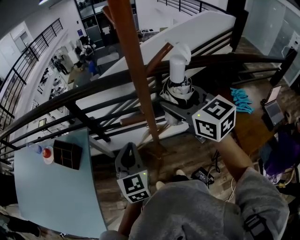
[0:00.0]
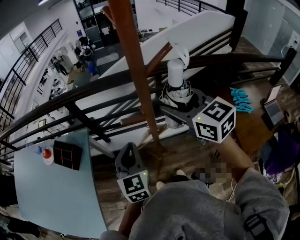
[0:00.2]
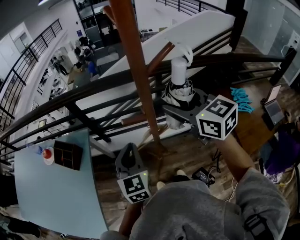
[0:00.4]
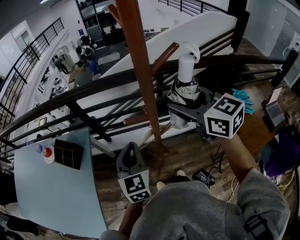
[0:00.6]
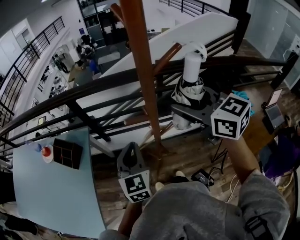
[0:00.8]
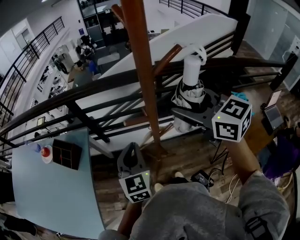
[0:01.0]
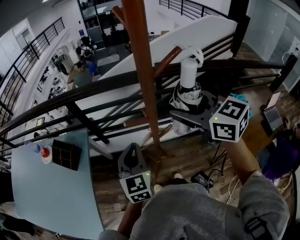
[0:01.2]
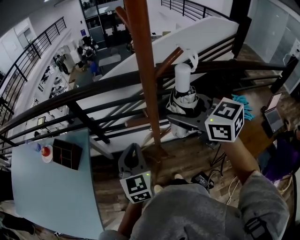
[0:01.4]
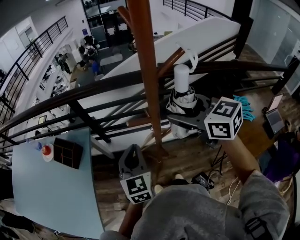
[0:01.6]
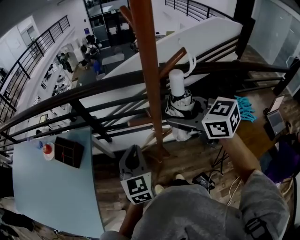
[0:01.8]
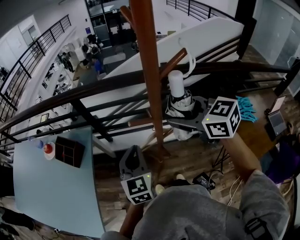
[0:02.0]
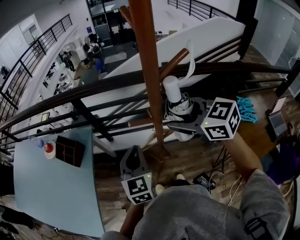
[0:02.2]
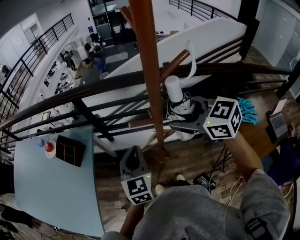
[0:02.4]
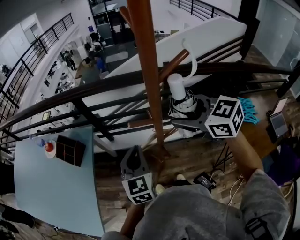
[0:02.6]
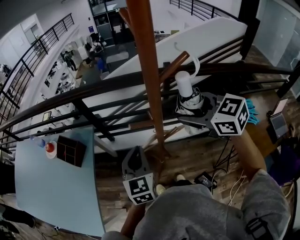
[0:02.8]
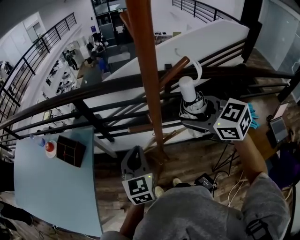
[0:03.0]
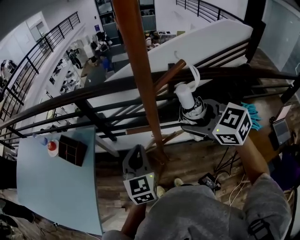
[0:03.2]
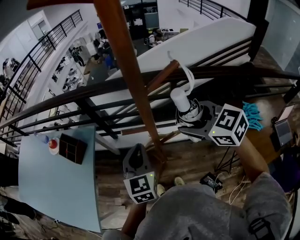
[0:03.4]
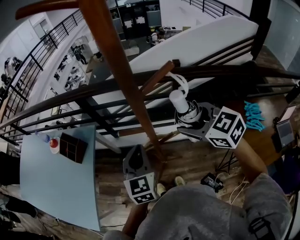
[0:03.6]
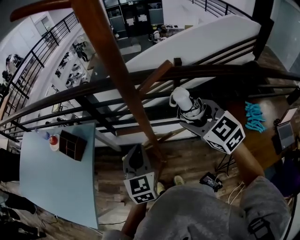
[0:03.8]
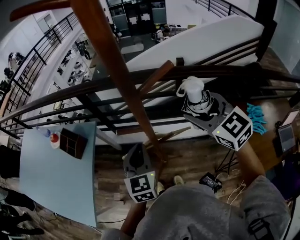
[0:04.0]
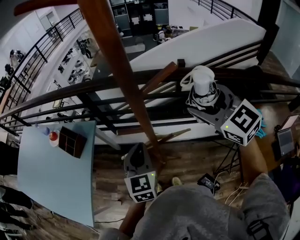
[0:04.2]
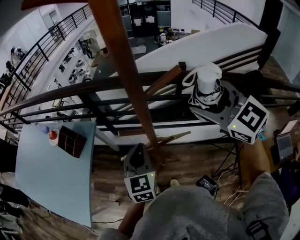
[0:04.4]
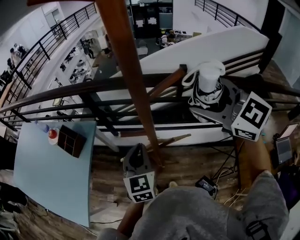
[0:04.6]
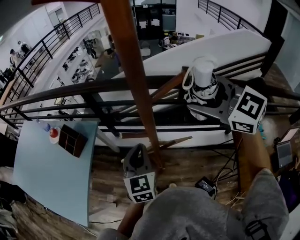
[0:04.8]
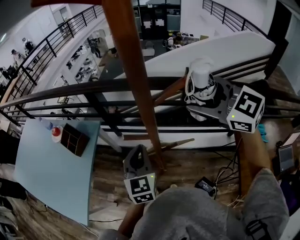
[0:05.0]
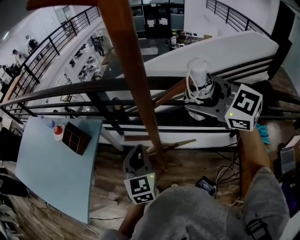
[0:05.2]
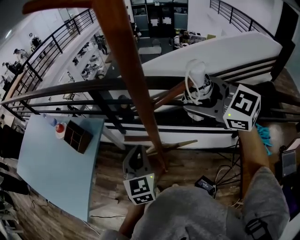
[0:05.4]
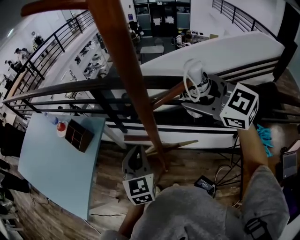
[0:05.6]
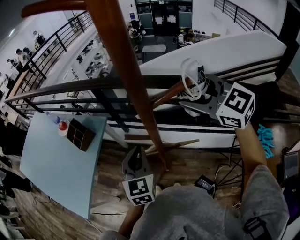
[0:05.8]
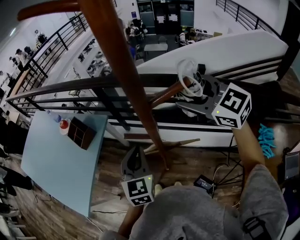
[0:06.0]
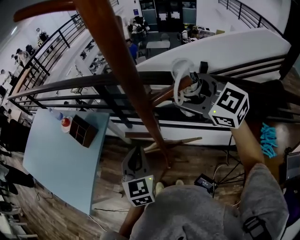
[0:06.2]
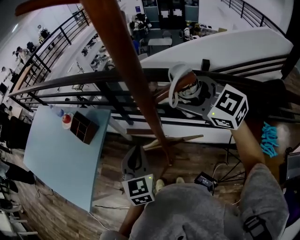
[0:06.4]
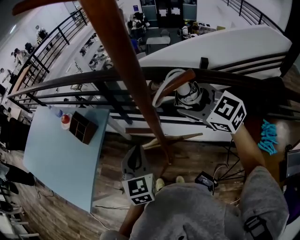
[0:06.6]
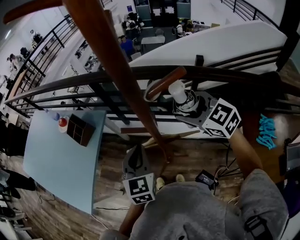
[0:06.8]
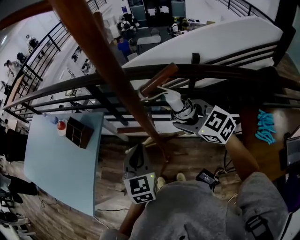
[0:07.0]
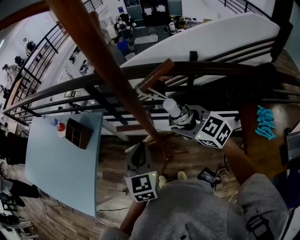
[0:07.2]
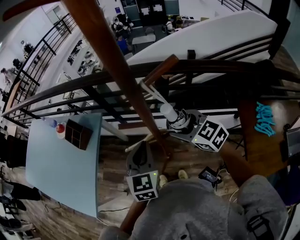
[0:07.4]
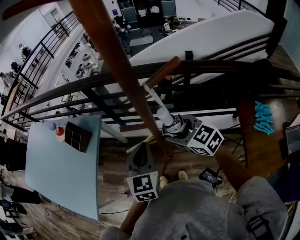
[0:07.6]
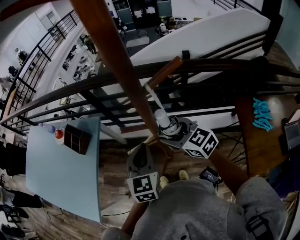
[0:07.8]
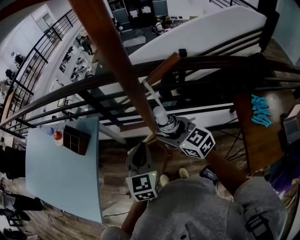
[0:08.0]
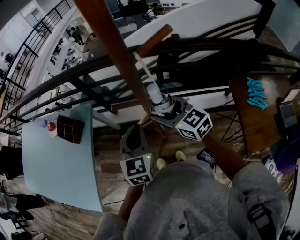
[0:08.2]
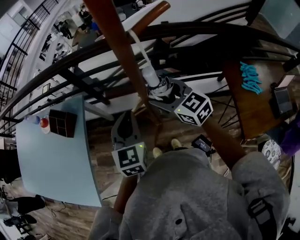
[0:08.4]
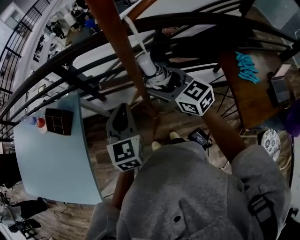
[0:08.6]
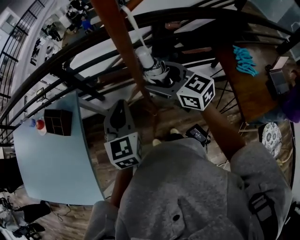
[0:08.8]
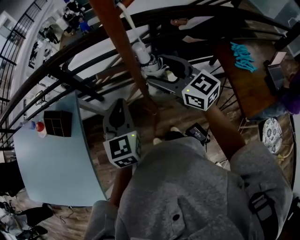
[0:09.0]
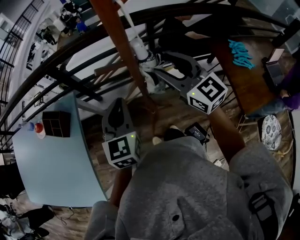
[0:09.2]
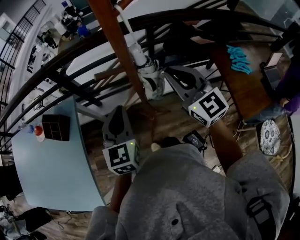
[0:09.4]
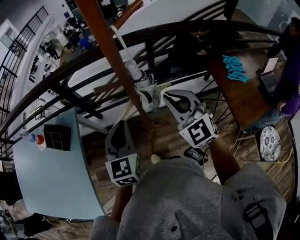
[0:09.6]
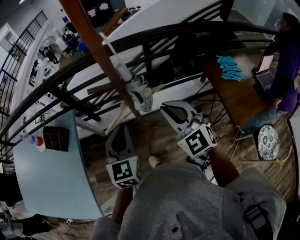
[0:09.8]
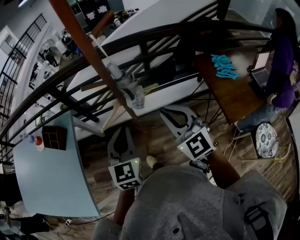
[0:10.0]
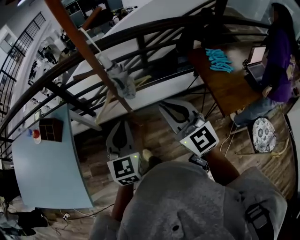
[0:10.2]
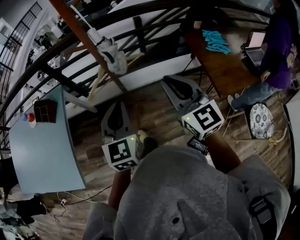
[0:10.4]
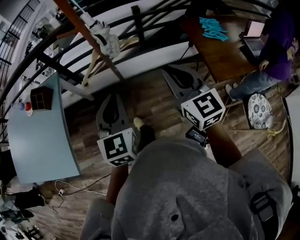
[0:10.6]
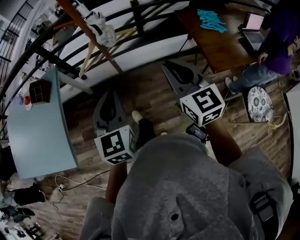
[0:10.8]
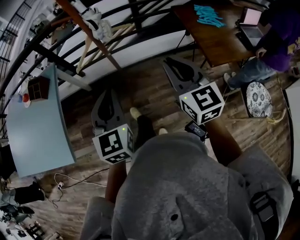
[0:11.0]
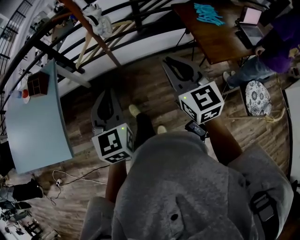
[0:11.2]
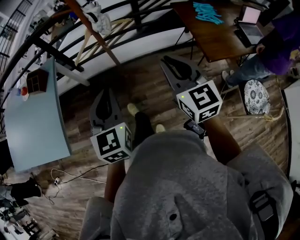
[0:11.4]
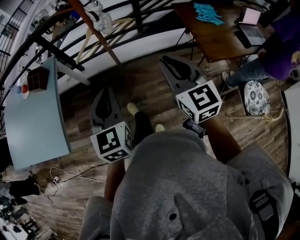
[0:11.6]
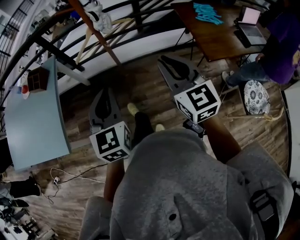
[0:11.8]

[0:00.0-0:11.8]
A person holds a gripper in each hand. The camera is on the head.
0:00.0 to 0:01.4: The grippers move only a little.
0:01.4 to 0:03.0: The grippers move only a little.
0:03.0 to 0:04.4: The right gripper goes some 10 cm upward and to the right, and swivels about 20 degrees. Meanwhile the left gripper goes about 5 cm to the right.
0:04.4 to 0:06.0: The right gripper is displaced forward by approximately 10 cm.
0:06.0 to 0:07.4: The right gripper goes about 20 cm downward.
0:07.4 to 0:08.8: The right gripper turns by some 30 degrees.
0:08.8 to 0:10.4: Both grippers move backward and to the right, roughly 25 cm. The right gripper swivels about 30 degrees, and closes its fingers.
0:10.4 to 0:11.8: The grippers both shift backward by some 15 cm.

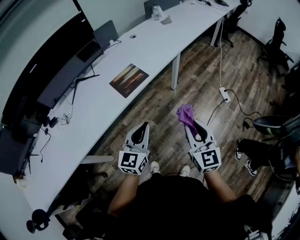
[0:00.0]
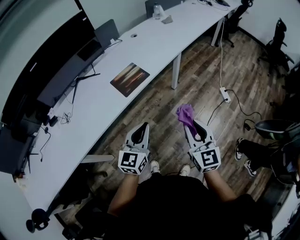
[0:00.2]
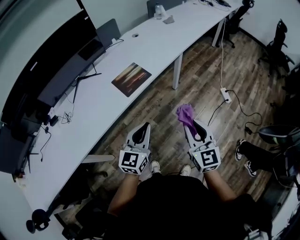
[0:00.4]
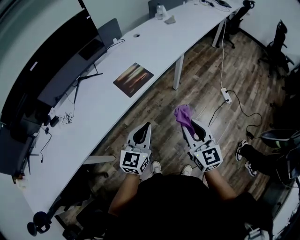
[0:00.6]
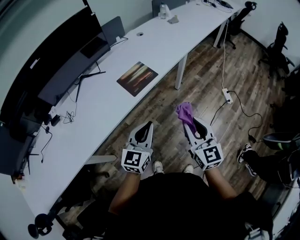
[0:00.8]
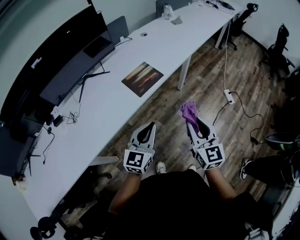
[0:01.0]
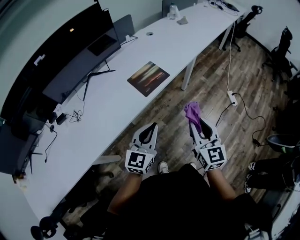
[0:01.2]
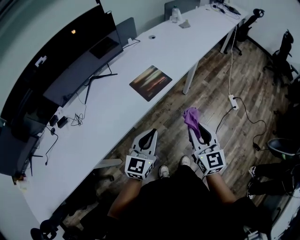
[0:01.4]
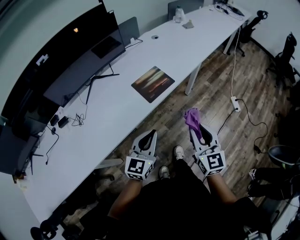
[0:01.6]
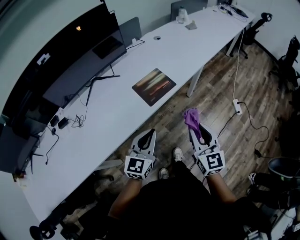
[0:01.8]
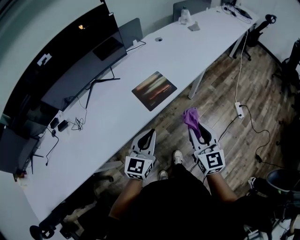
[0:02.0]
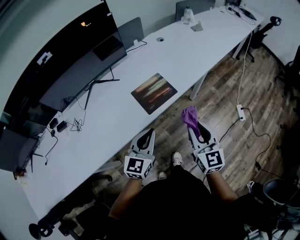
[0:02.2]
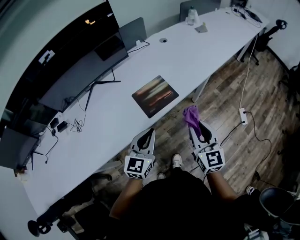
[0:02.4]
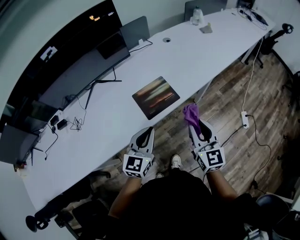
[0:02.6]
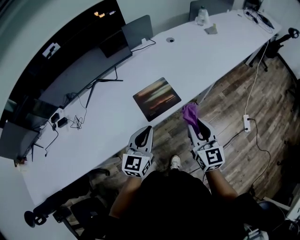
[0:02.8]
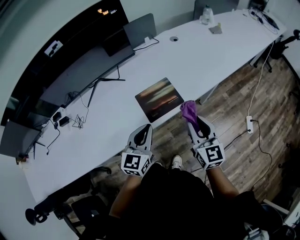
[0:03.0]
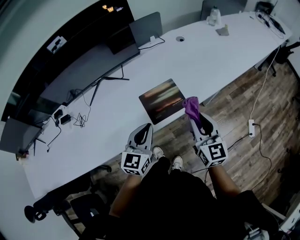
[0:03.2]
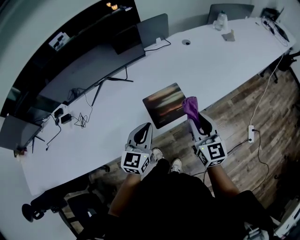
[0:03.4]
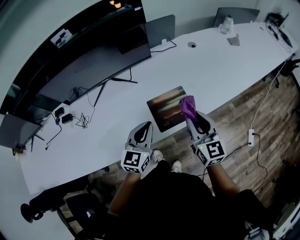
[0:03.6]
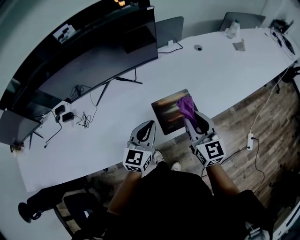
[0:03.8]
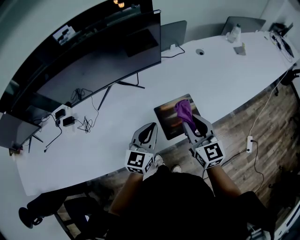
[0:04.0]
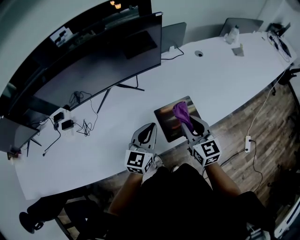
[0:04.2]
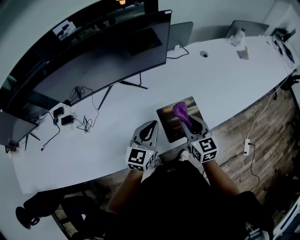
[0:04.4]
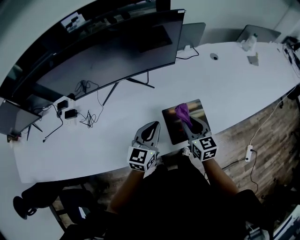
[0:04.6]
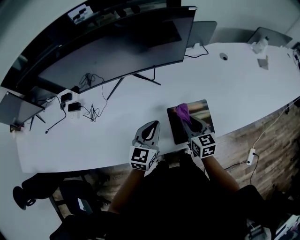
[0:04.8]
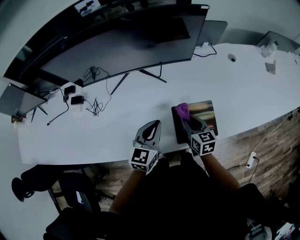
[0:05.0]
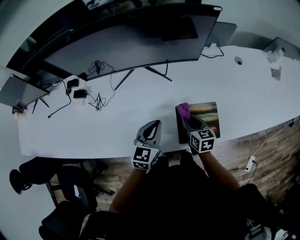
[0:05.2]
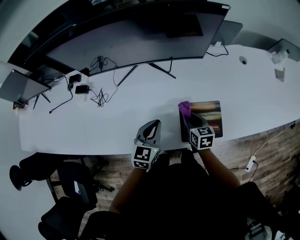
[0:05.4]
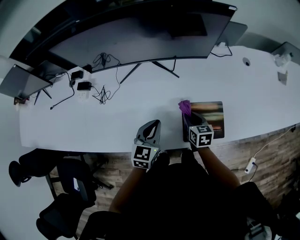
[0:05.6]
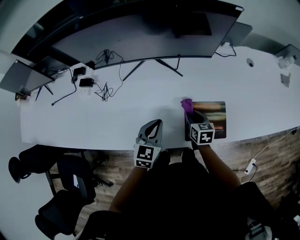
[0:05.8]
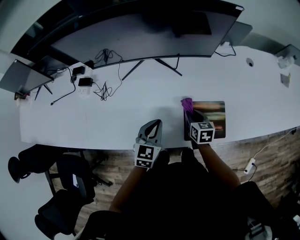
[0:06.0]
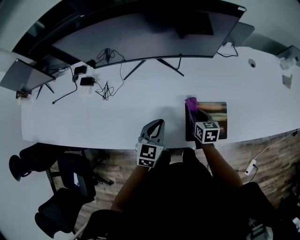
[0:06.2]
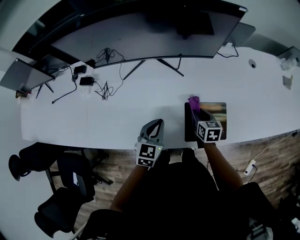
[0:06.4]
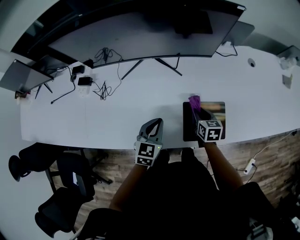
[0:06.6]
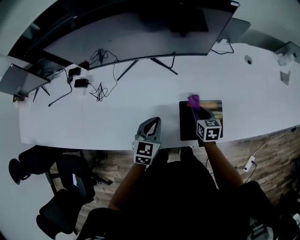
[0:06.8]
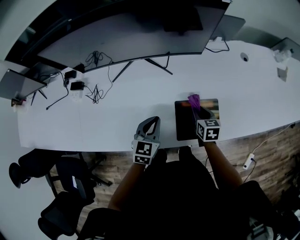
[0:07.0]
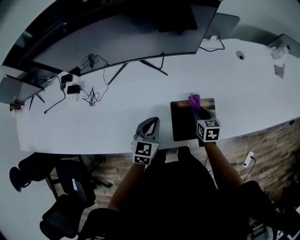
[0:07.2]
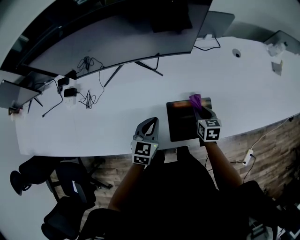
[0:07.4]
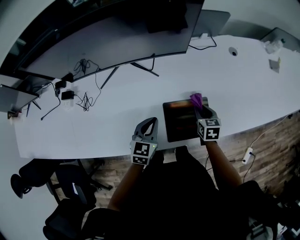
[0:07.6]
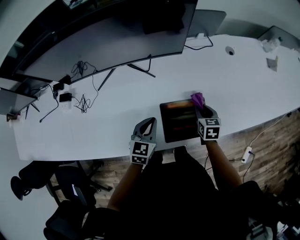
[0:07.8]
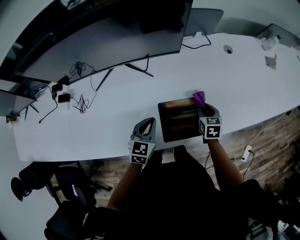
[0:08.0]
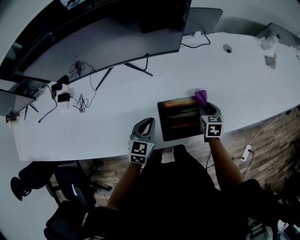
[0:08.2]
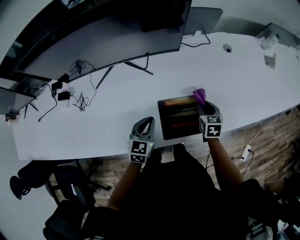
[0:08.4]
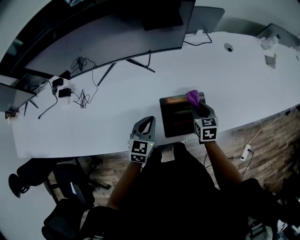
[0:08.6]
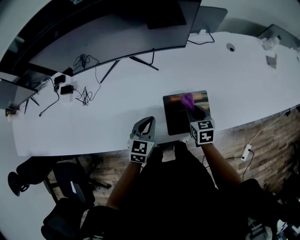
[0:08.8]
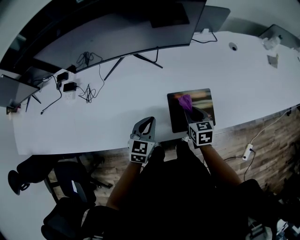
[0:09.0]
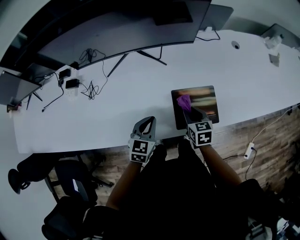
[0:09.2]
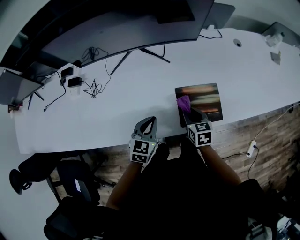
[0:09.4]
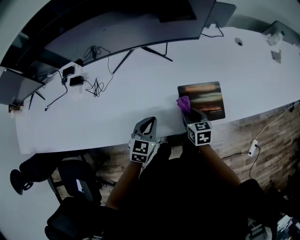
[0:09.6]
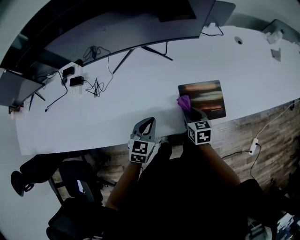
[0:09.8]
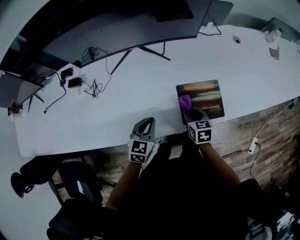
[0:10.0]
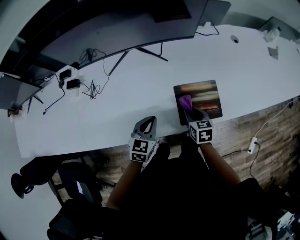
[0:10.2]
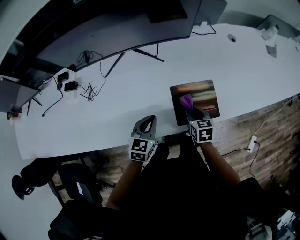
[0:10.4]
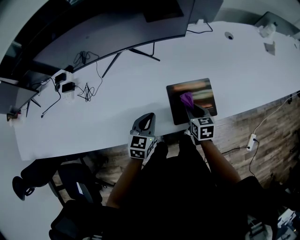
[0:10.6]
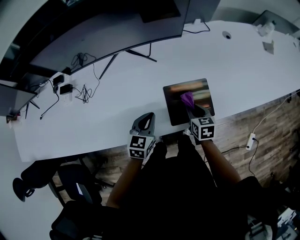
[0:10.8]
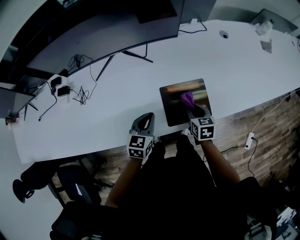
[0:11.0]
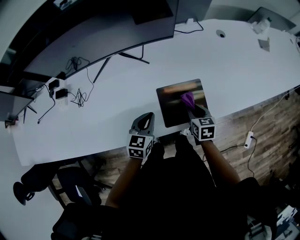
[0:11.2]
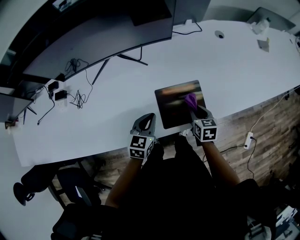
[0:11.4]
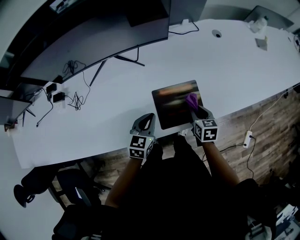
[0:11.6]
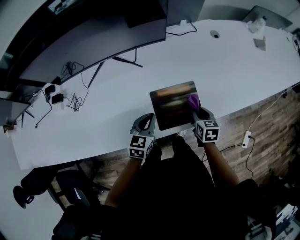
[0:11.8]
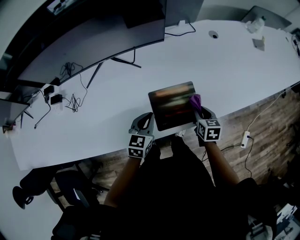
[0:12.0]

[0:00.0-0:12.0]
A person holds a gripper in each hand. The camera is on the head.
0:00.0 to 0:01.6: Both grippers travel together to the left, about 15 cm.
0:01.6 to 0:03.0: Both grippers move forward, approximately 20 cm.
0:03.0 to 0:04.4: Both grippers travel together forward and to the left, approximately 20 cm.
0:04.4 to 0:06.0: The right gripper goes approximately 20 cm downward, to the left and forward, and turns by roughly 30 degrees. Meanwhile the left gripper travels to the left and downward by some 10 cm, and rotates some 30 degrees.
0:06.0 to 0:07.6: The left gripper is displaced to the right by about 5 cm, while the right gripper moves to the right, about 15 cm.
0:07.6 to 0:09.0: The left gripper changes place by approximately 5 cm. Meanwhile the right gripper goes about 10 cm to the left and backward.
0:10.4 to 0:12.0: The left gripper heads to the right, covering about 10 cm; the right gripper heads to the right, covering about 15 cm.
